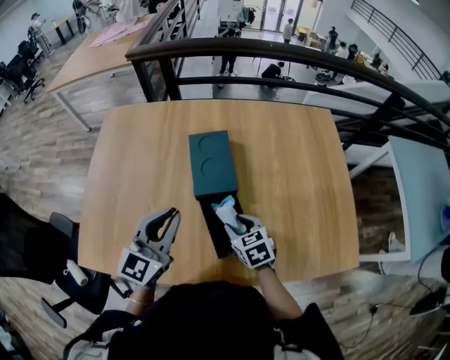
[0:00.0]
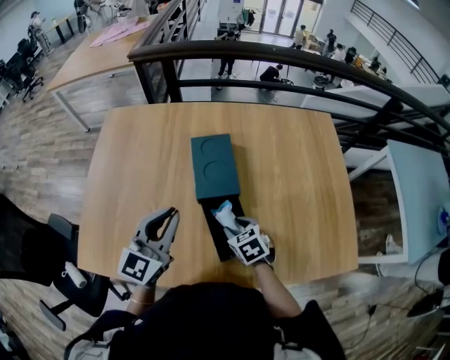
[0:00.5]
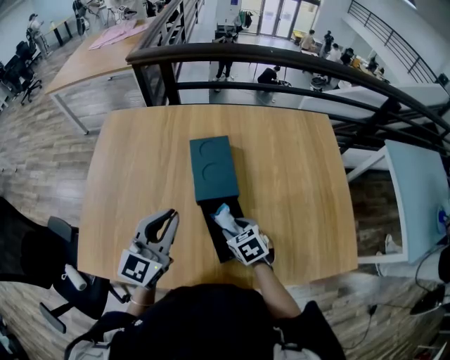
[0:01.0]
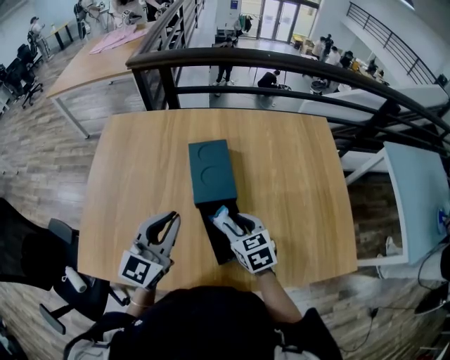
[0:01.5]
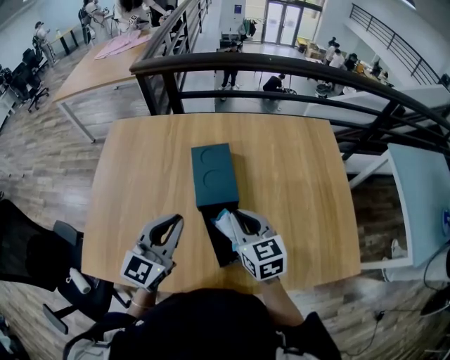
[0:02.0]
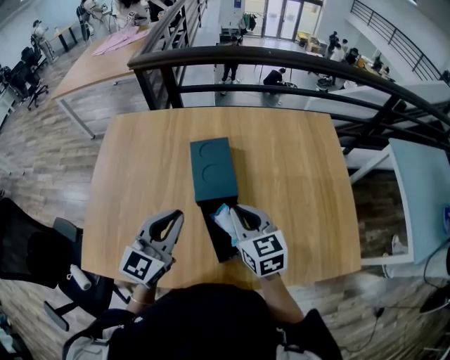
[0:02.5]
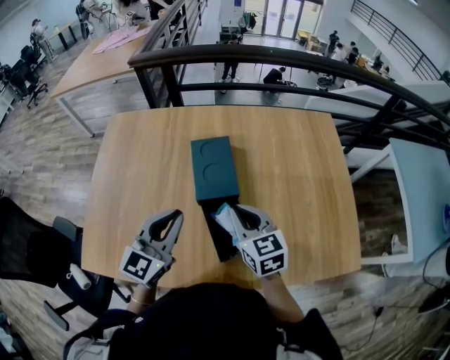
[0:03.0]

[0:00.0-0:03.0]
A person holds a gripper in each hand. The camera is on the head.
0:00.0 to 0:01.5: The right gripper moves about 5 cm.
0:01.5 to 0:03.0: The right gripper shifts some 10 cm upward, and closes.

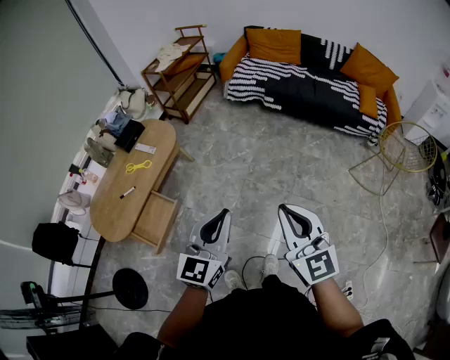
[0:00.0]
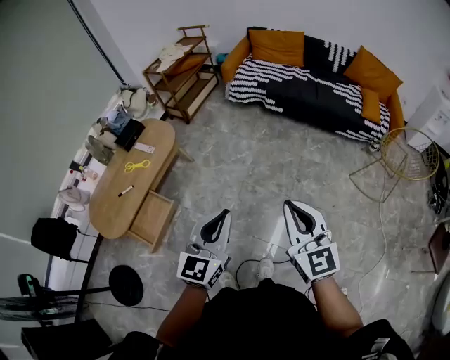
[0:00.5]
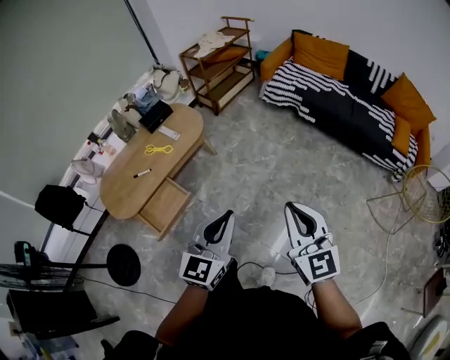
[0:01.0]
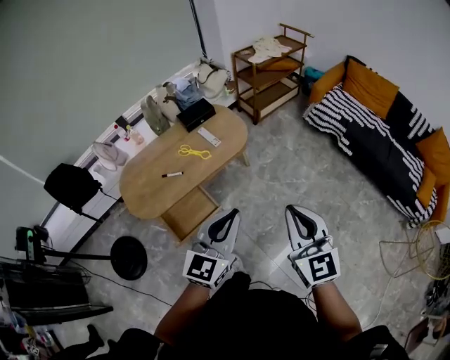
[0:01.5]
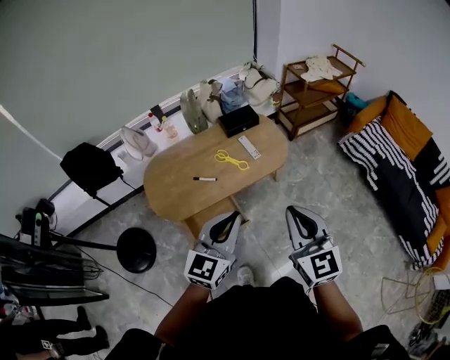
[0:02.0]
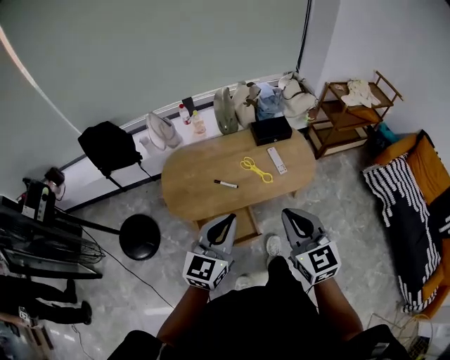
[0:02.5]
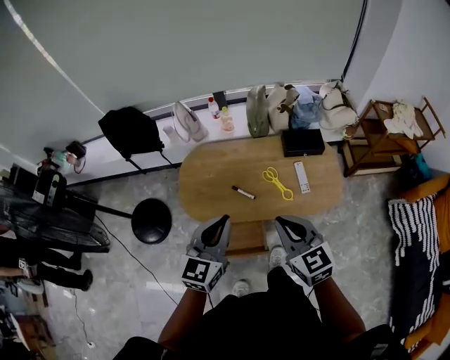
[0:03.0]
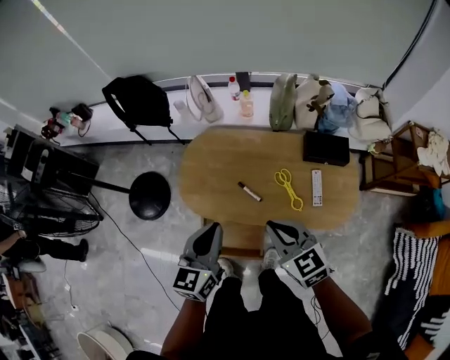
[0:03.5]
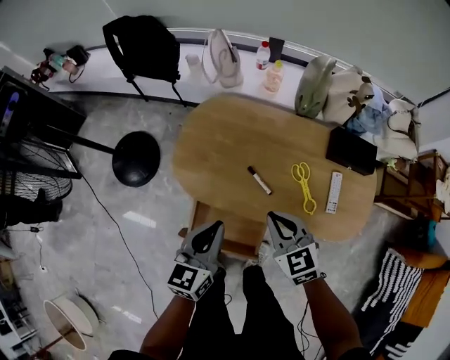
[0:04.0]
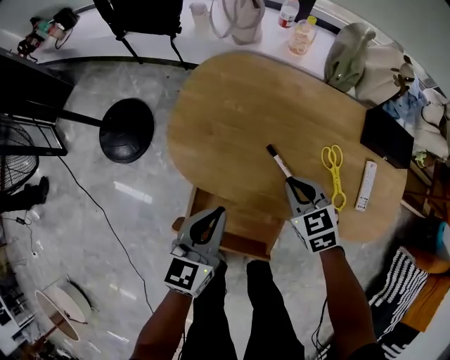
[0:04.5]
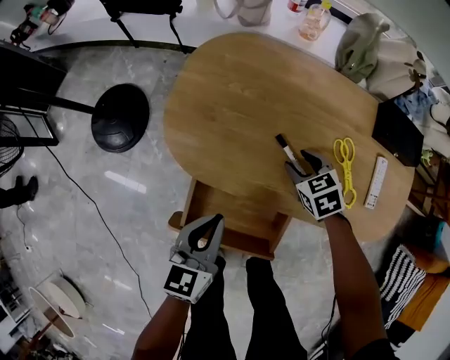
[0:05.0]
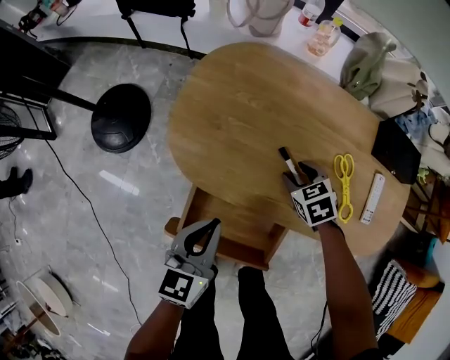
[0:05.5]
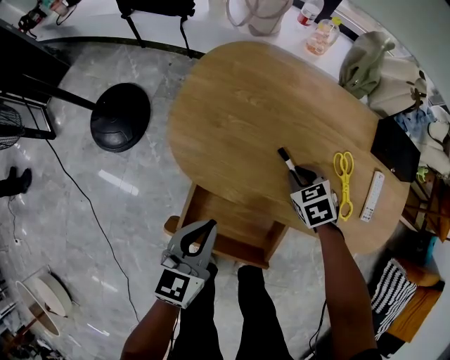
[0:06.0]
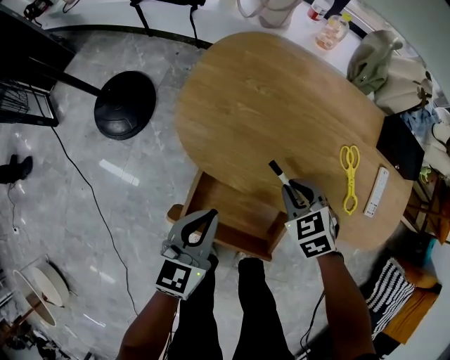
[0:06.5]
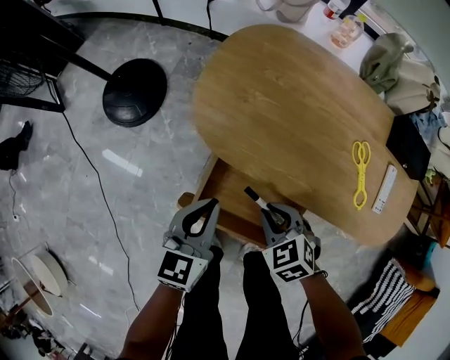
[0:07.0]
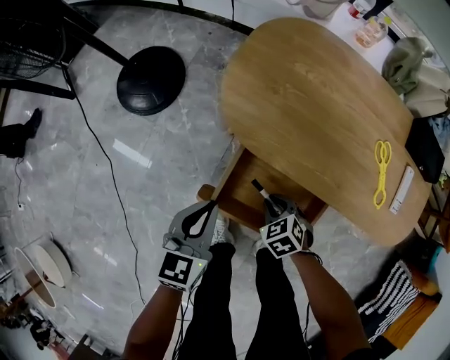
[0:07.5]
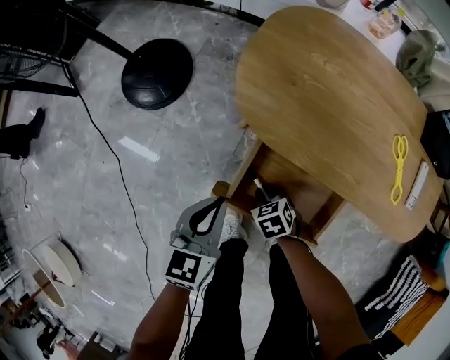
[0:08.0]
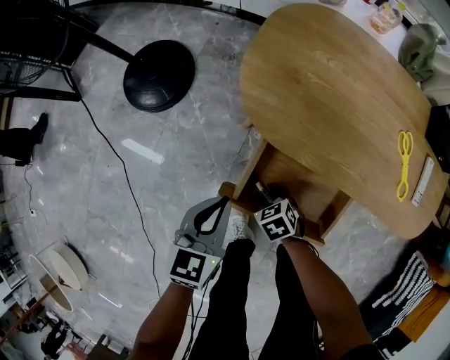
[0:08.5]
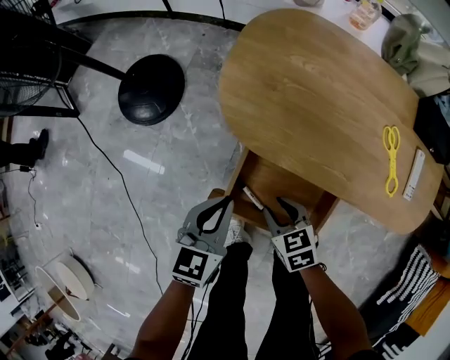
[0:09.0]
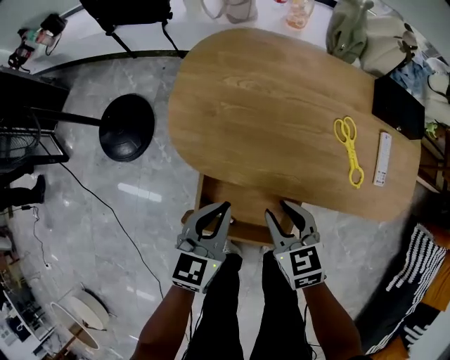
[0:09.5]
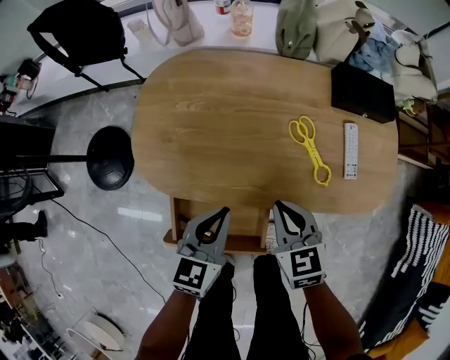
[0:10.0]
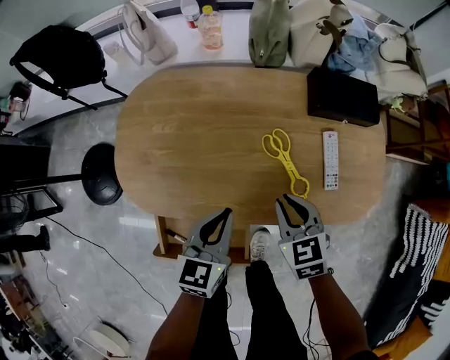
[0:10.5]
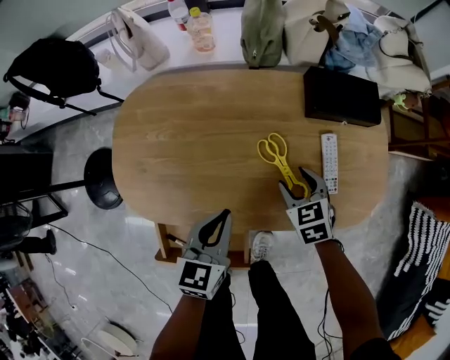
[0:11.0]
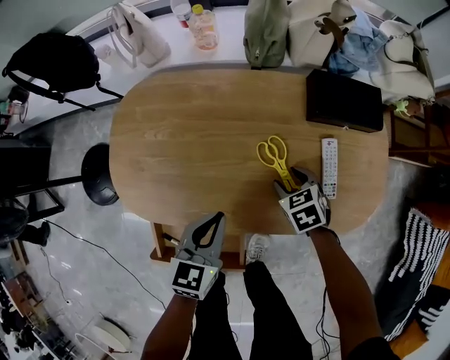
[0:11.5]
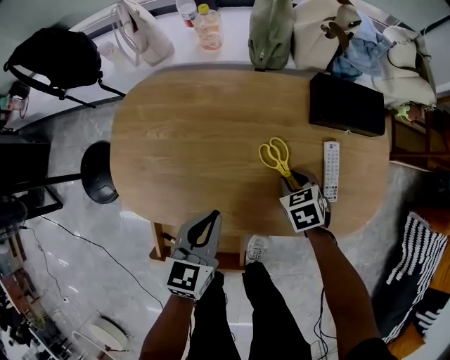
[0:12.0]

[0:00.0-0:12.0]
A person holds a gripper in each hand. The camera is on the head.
0:00.0 to 0:02.0: The two grippers travel together, roughly 50 cm. The right gripper turns by about 30 degrees, while the left gripper swivels roughly 30 degrees.
0:02.0 to 0:04.0: The right gripper moves roughly 50 cm, and swivels about 60 degrees. Meanwhile the left gripper moves some 40 cm, and changes its angle by roughly 50 degrees.
0:04.0 to 0:06.0: The two grippers go some 25 cm downward. The right gripper swivels some 30 degrees, and opens and closes again.
0:06.0 to 0:08.0: The left gripper moves to the left, some 15 cm. The right gripper is displaced to the left, backward and downward by some 35 cm.
0:08.0 to 0:10.0: The left gripper moves approximately 30 cm, and turns by some 20 degrees, while the right gripper ends up about 40 cm from where it was, and turns by roughly 40 degrees.
0:10.0 to 0:12.0: The left gripper moves forward and to the right, some 10 cm, while the right gripper travels to the right, forward and downward by roughly 25 cm, swivels about 20 degrees, and opens its fingers.

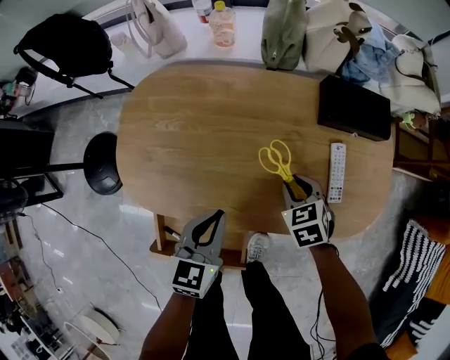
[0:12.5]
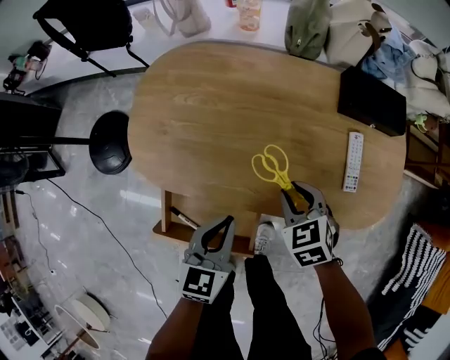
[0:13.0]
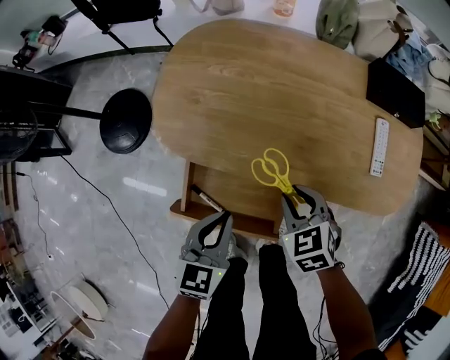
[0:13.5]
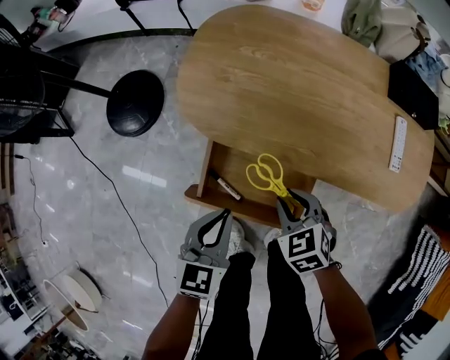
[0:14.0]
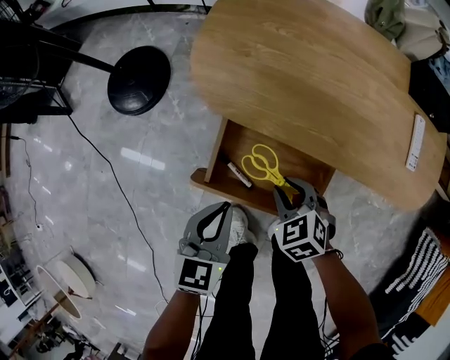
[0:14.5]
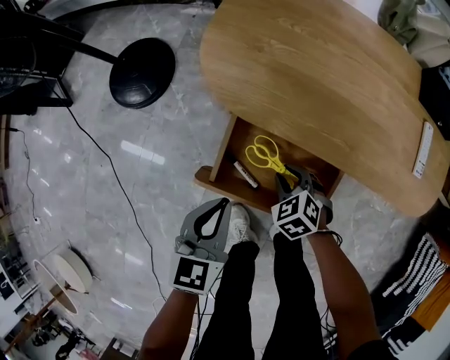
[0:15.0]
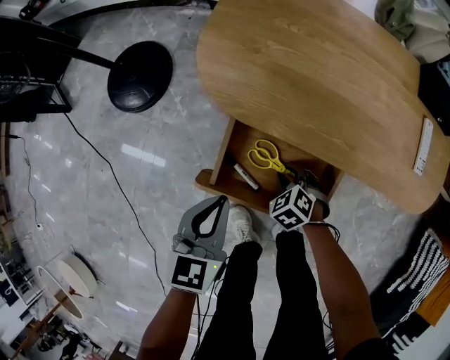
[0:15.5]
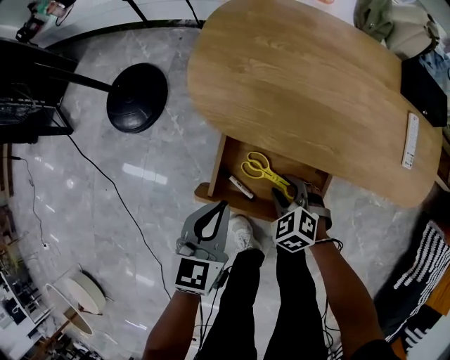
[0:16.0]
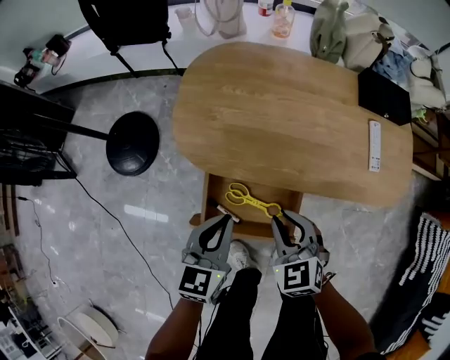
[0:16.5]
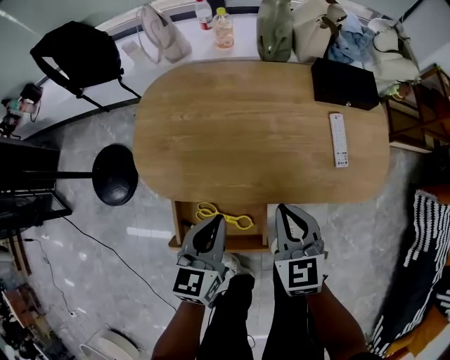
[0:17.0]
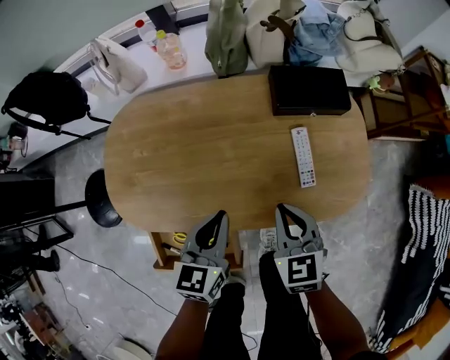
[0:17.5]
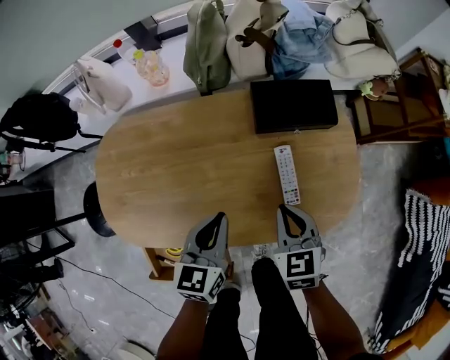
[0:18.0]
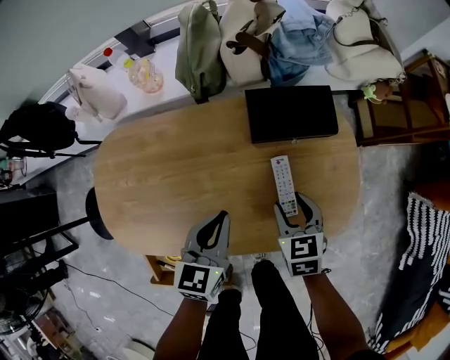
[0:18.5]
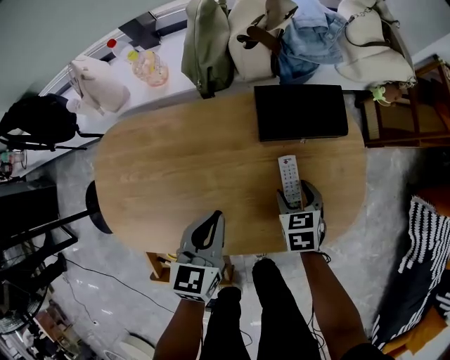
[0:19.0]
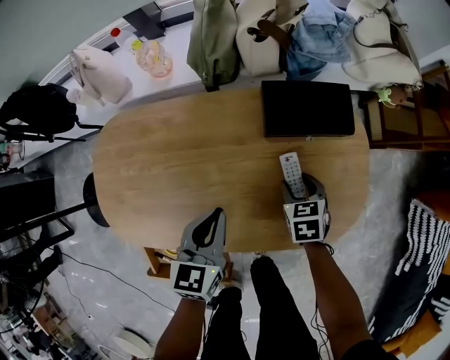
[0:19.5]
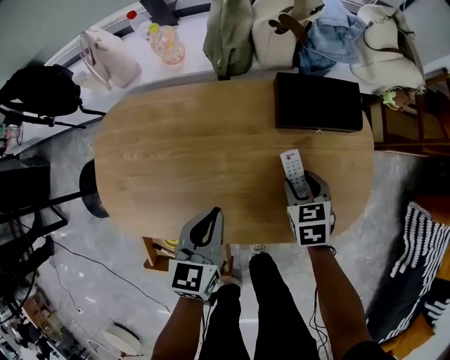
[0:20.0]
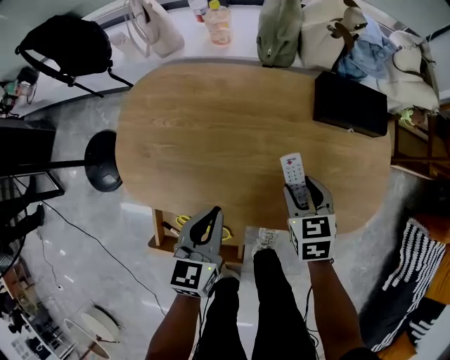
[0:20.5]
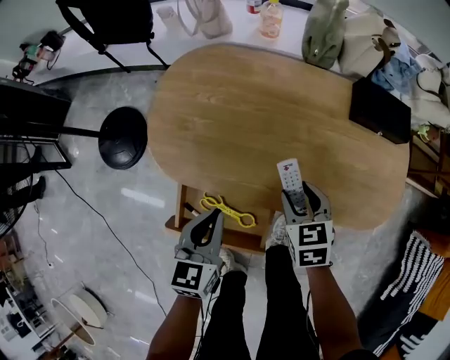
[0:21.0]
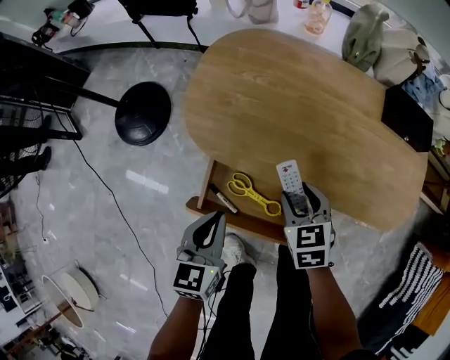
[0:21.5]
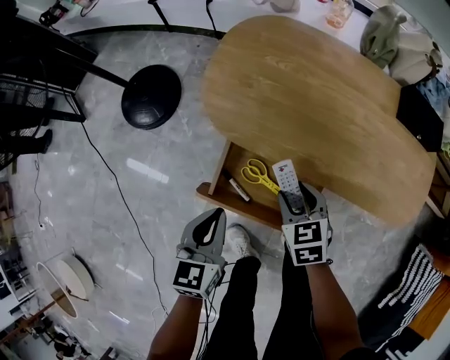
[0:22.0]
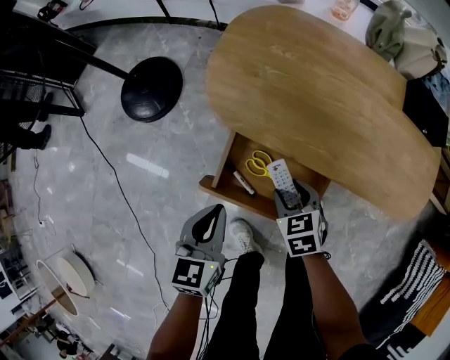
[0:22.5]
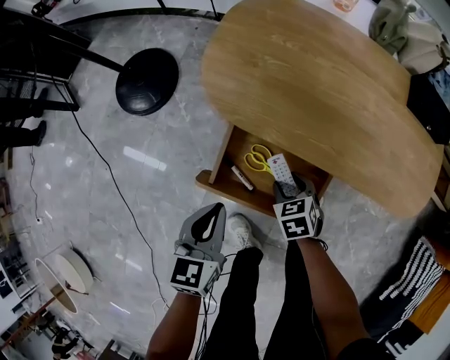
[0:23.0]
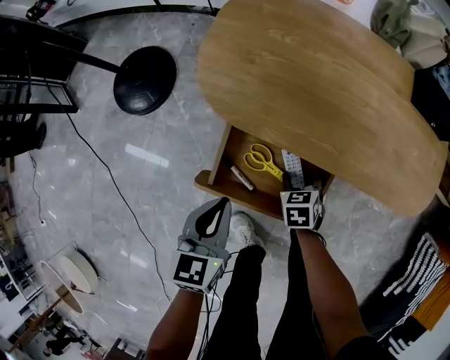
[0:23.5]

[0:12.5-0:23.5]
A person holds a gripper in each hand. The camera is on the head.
0:12.5 to 0:14.5: The two grippers go roughly 35 cm to the left and backward. The right gripper turns by about 30 degrees.
0:14.5 to 0:16.0: The right gripper goes downward and returns, some 10 cm each way.
0:16.0 to 0:18.0: The two grippers travel together, roughly 40 cm. The right gripper rotates around the line of its fingers by approximately 50 degrees, clockwise from behind, and closes up.
0:18.0 to 0:20.0: The right gripper moves downward and forward, about 10 cm, and opens its fingers.
0:20.0 to 0:21.5: Both grippers move to the left and backward, approximately 40 cm. The right gripper changes its angle by some 30 degrees.
0:21.5 to 0:23.5: The left gripper shifts approximately 5 cm downward, while the right gripper goes some 20 cm downward.
